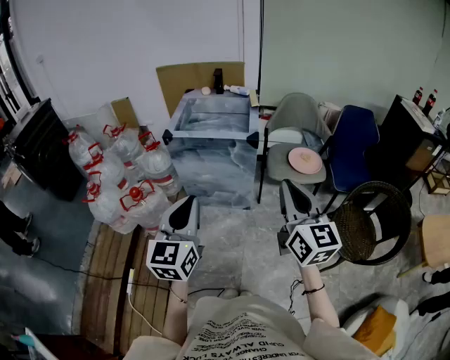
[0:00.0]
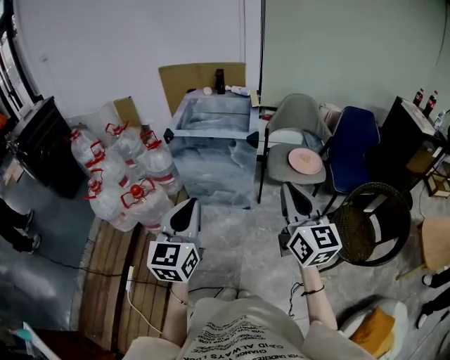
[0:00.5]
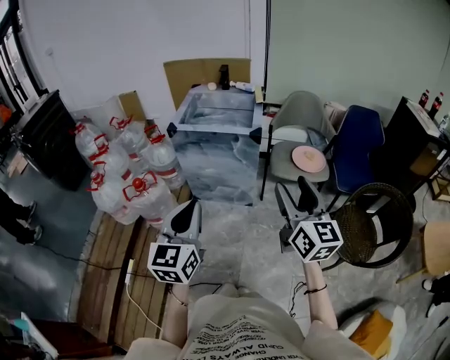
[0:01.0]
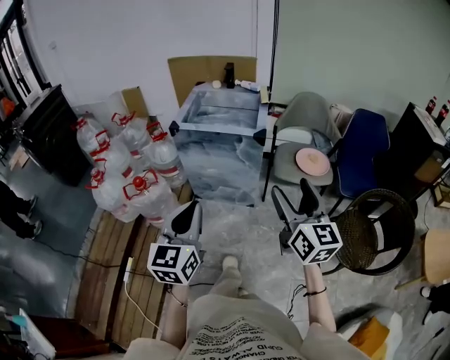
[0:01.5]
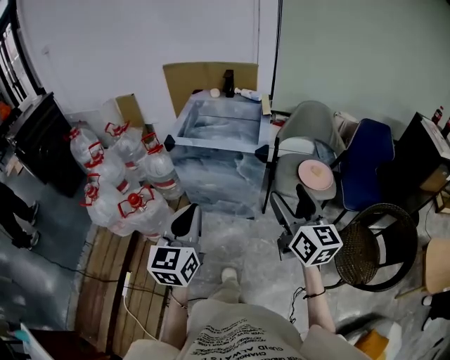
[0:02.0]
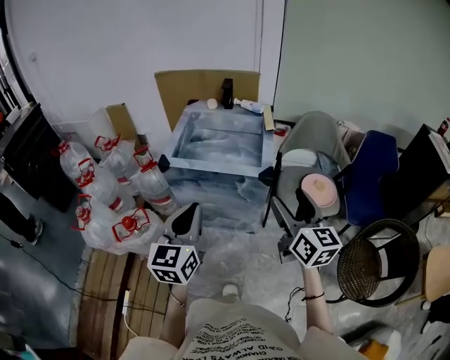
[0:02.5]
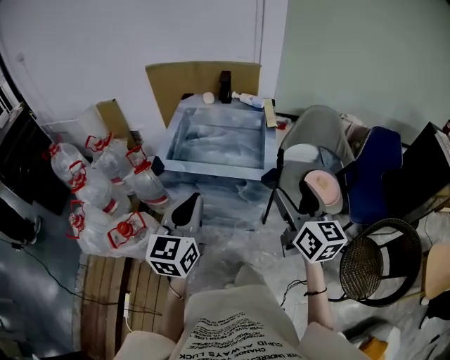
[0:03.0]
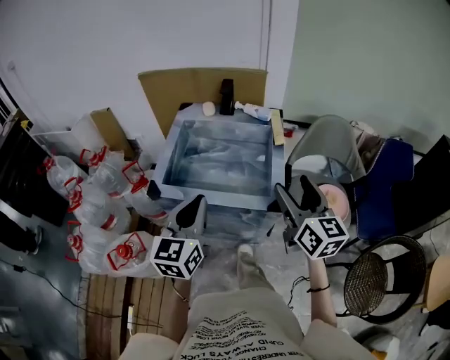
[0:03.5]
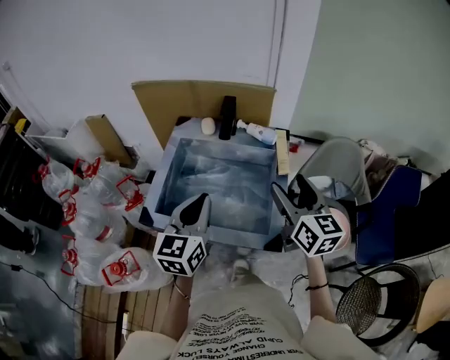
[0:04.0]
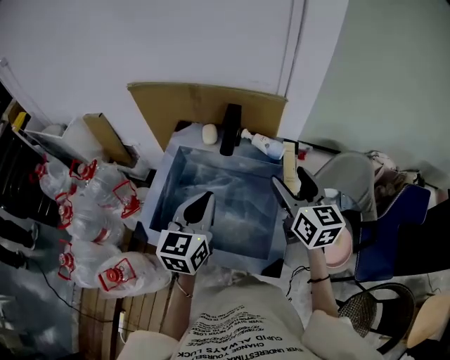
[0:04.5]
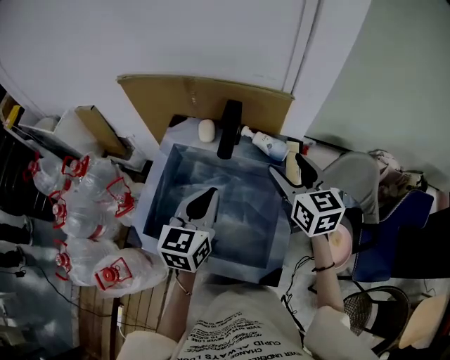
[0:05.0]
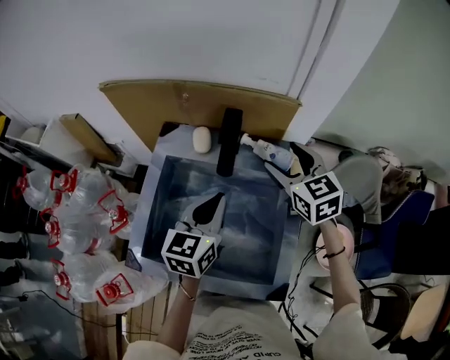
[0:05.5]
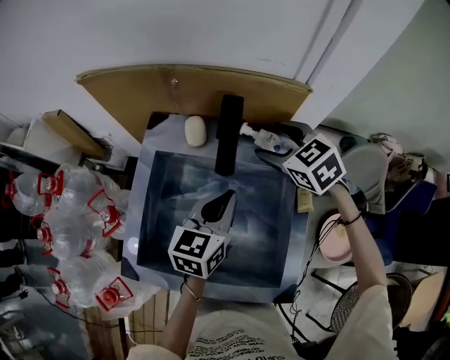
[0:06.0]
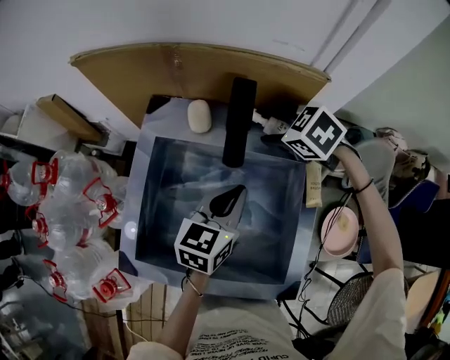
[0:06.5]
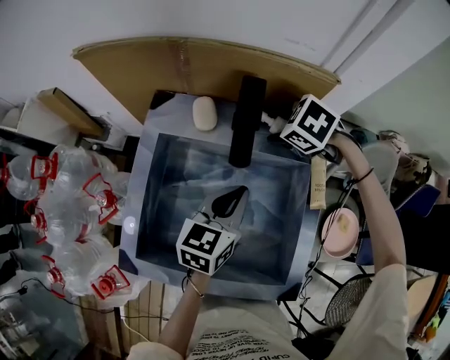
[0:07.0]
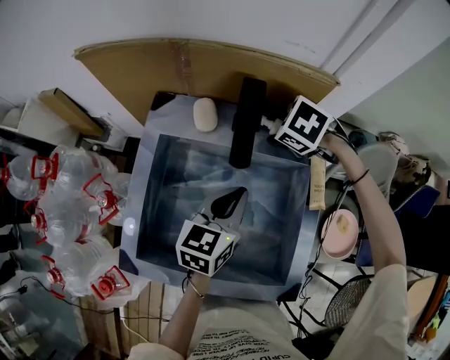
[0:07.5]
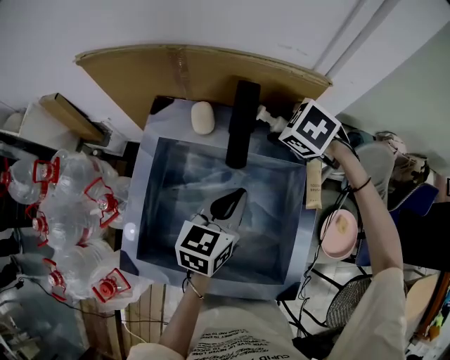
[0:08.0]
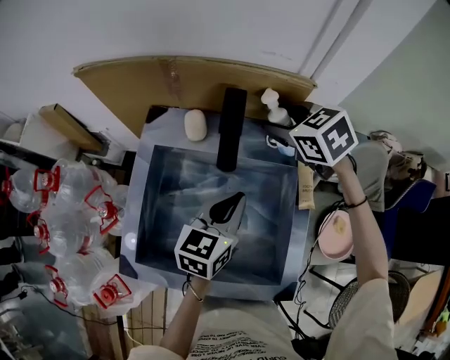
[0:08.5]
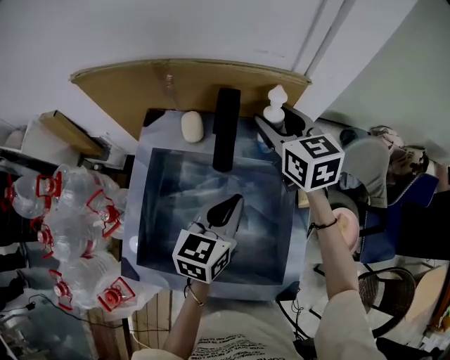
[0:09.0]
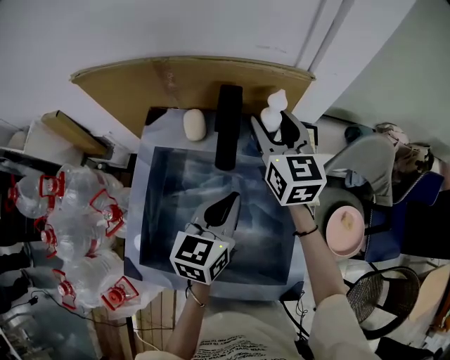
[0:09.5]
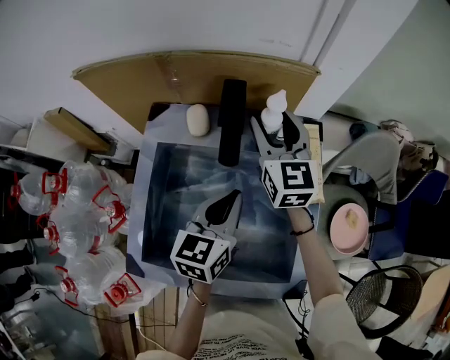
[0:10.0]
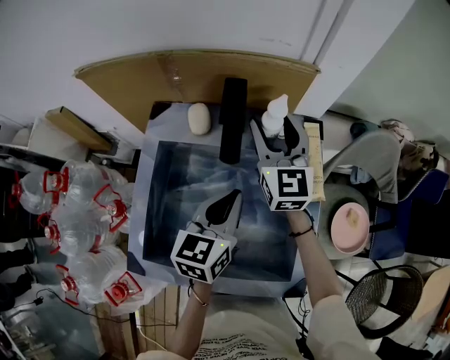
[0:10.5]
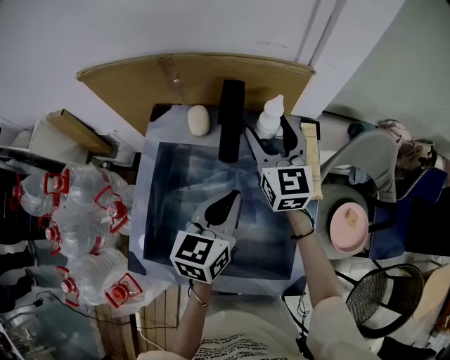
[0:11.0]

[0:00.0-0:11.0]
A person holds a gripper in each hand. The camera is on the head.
0:00.0 to 0:02.0: Both grippers travel together forward, roughly 10 cm. The right gripper opens its fingers.
0:02.0 to 0:03.5: Both grippers travel together forward, about 30 cm.
0:03.5 to 0:05.5: Both grippers travel together forward, about 35 cm. The right gripper turns by approximately 30 degrees.
0:05.5 to 0:07.5: The left gripper heads downward, covering some 5 cm, while the right gripper heads downward, covering some 10 cm, and tilts its fingers approximately 50 degrees downward.
0:07.5 to 0:09.0: The right gripper shifts approximately 10 cm upward, and points its fingers roughly 50 degrees further upward.

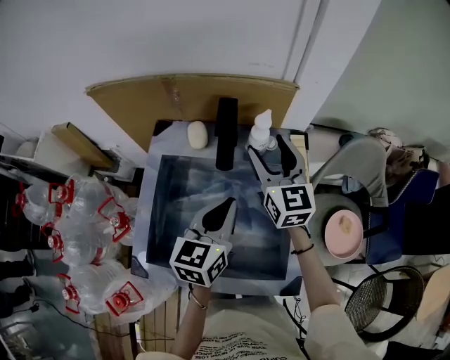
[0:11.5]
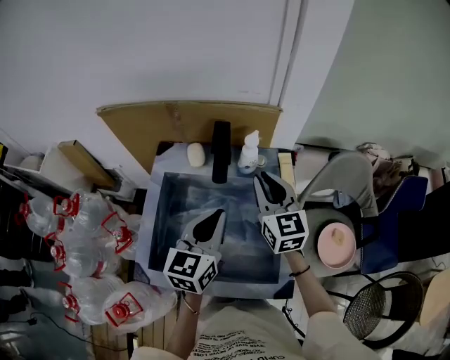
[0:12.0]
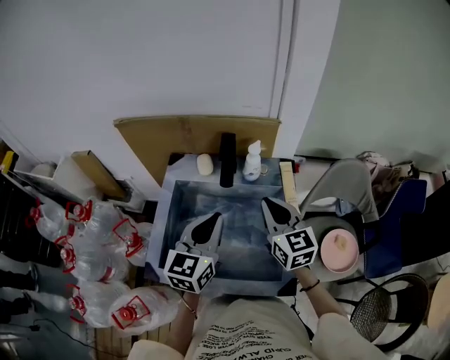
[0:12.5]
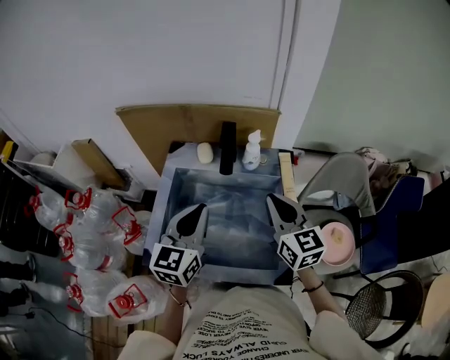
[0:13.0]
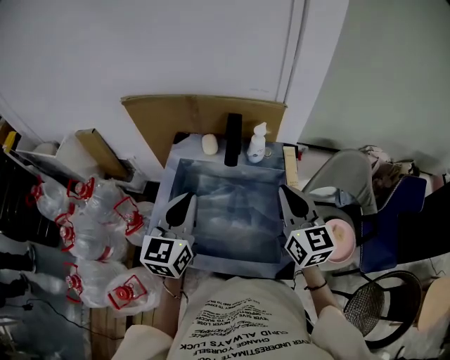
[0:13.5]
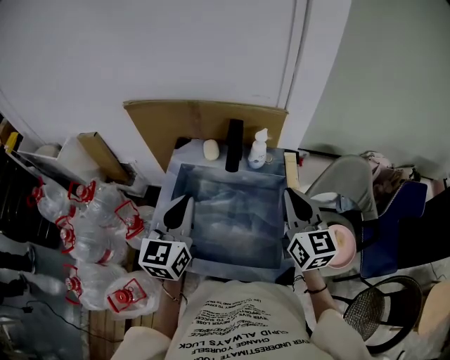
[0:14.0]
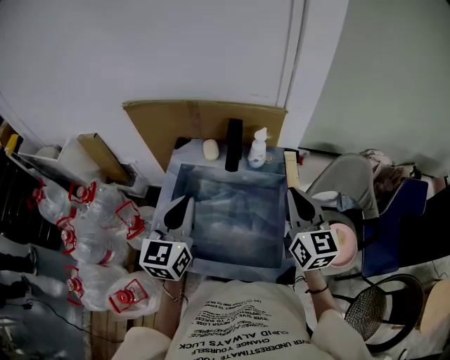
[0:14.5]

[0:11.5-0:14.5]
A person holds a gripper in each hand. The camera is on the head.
0:11.5 to 0:13.0: The right gripper goes approximately 15 cm backward, and closes its fingers. Meanwhile the left gripper shifts roughly 10 cm upward, to the left and backward.
0:13.0 to 0:14.5: The grippers move only a little.

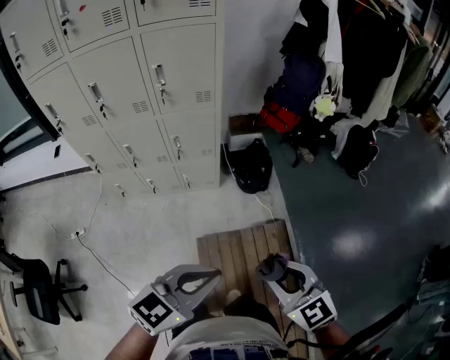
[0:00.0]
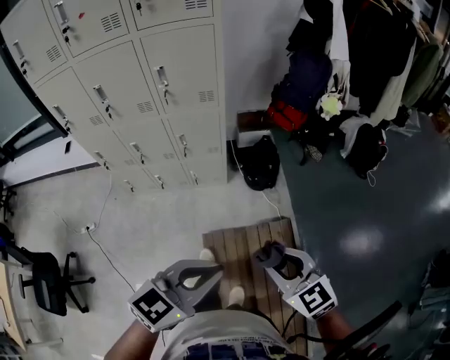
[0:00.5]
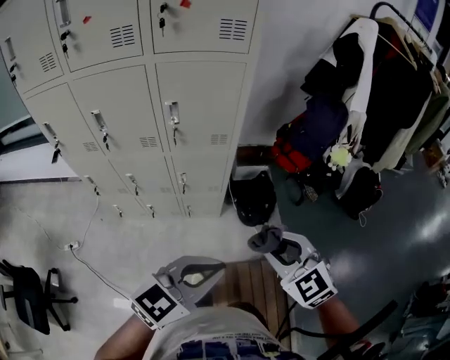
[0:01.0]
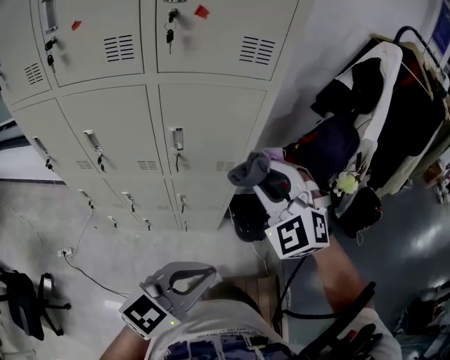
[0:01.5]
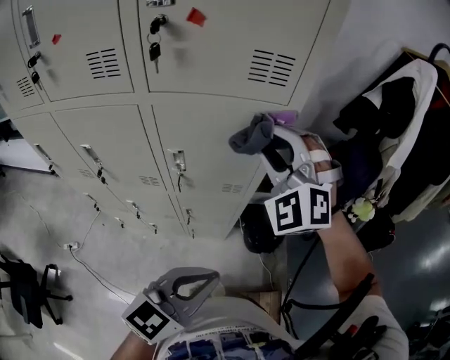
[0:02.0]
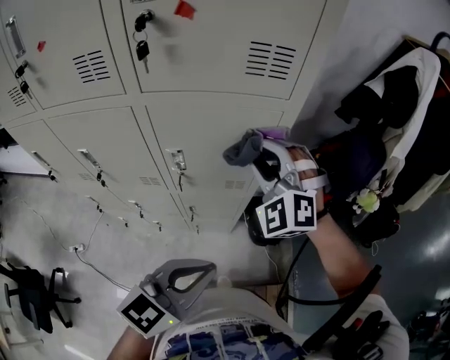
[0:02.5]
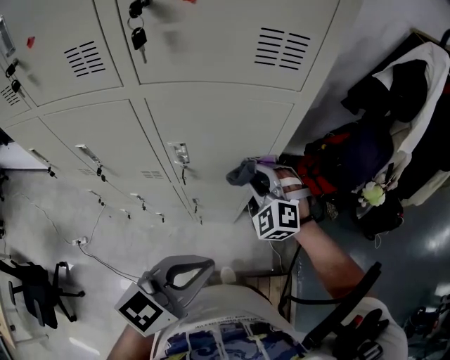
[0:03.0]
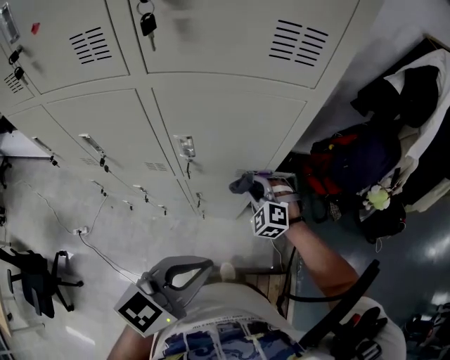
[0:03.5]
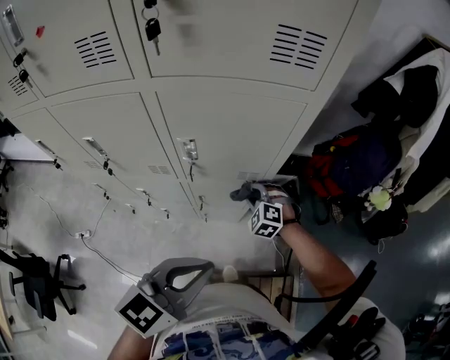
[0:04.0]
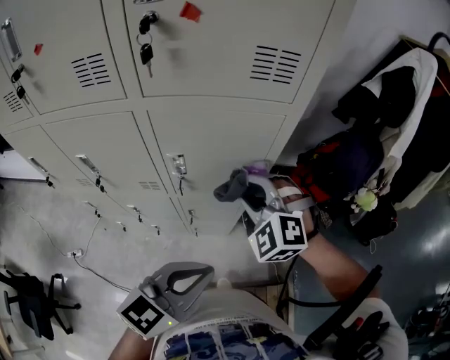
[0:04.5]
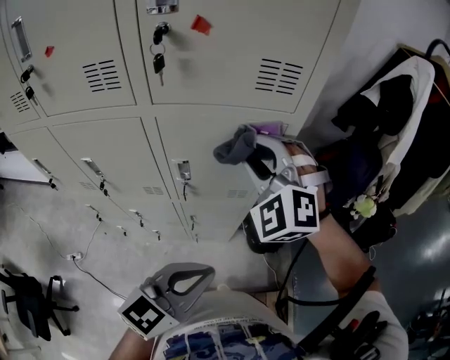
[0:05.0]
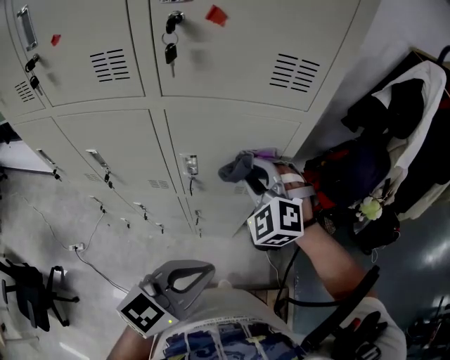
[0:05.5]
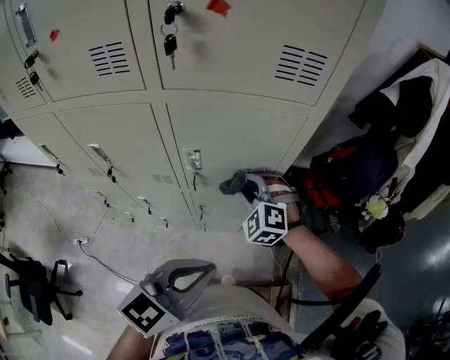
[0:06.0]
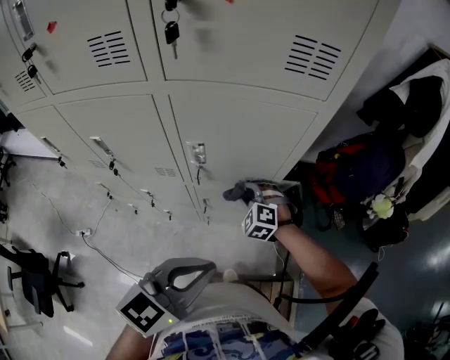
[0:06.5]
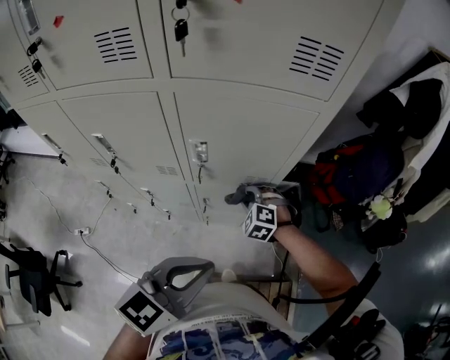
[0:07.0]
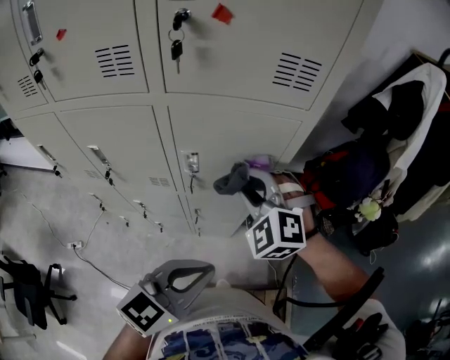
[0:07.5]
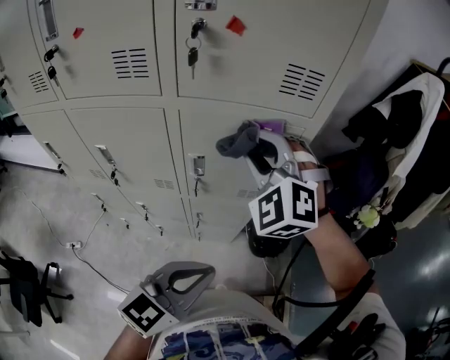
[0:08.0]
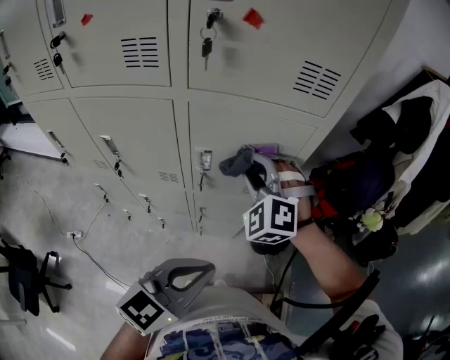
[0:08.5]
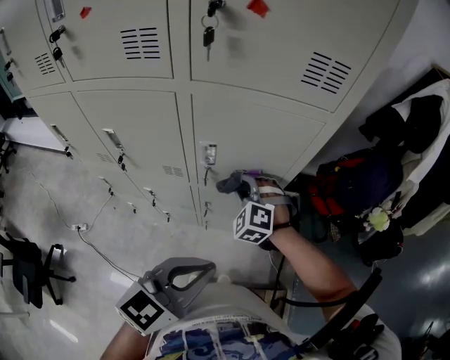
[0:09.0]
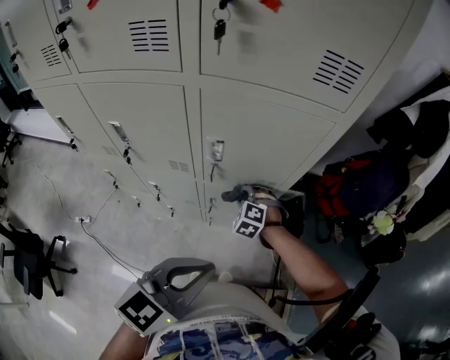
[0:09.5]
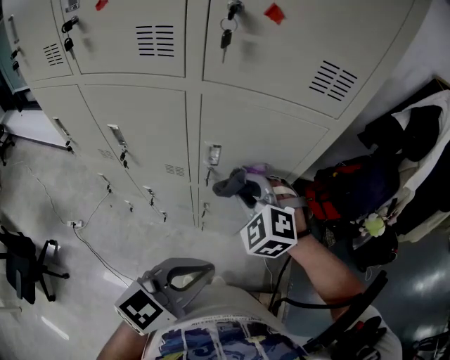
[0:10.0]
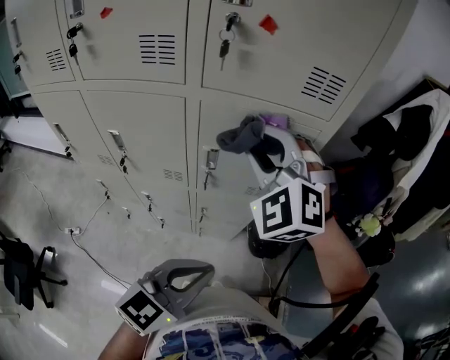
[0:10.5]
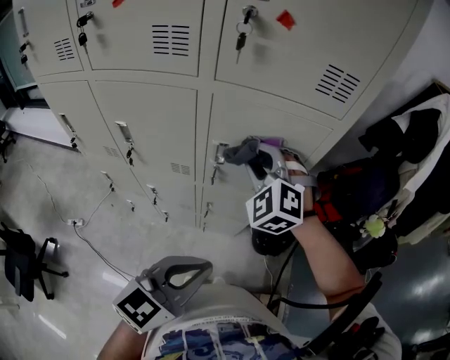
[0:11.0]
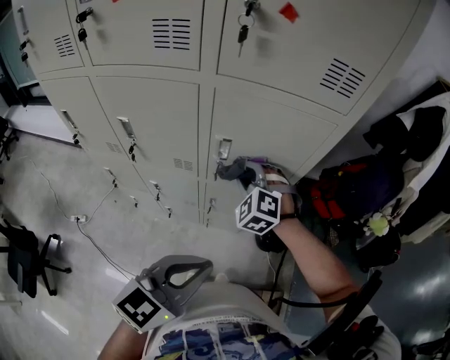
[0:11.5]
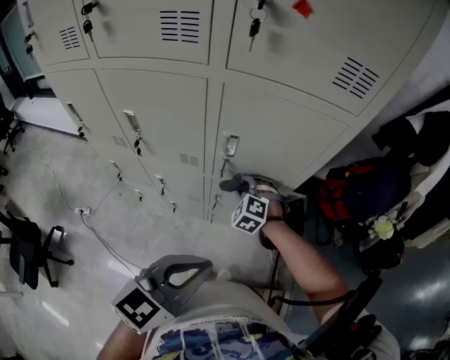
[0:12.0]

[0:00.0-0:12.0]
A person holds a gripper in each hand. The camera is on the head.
0:00.0 to 0:02.0: The pair of grippers is taken forward, about 50 cm. The right gripper twists some 60 degrees counterclockwise, seen from behind.
0:02.0 to 0:04.0: The right gripper shifts approximately 40 cm downward, and tips its fingers downward by roughly 40 degrees.
0:04.0 to 0:06.0: The right gripper is displaced upward by approximately 15 cm.
0:06.0 to 0:08.0: The right gripper travels upward by roughly 25 cm.
0:08.0 to 0:10.0: The right gripper heads downward, covering some 15 cm, and changes its angle by roughly 20 degrees.
0:10.0 to 0:12.0: The right gripper goes approximately 20 cm downward.

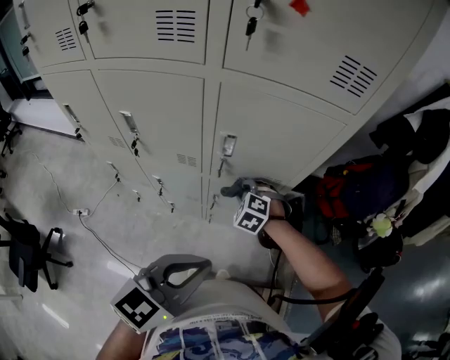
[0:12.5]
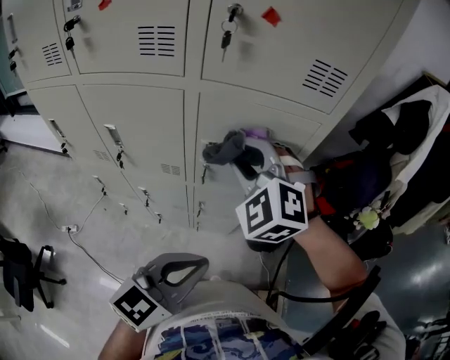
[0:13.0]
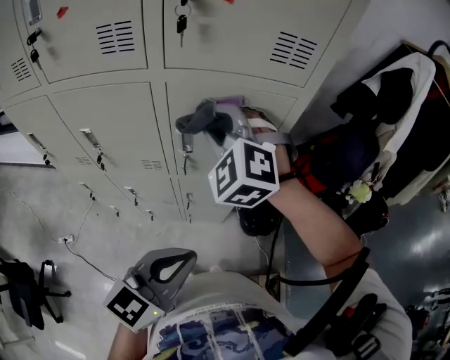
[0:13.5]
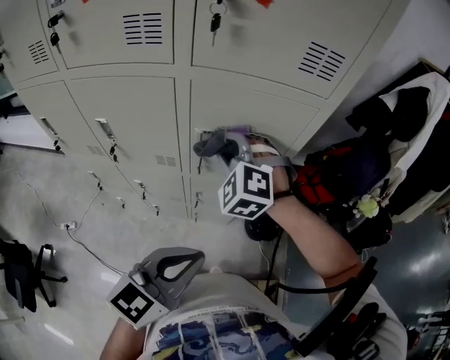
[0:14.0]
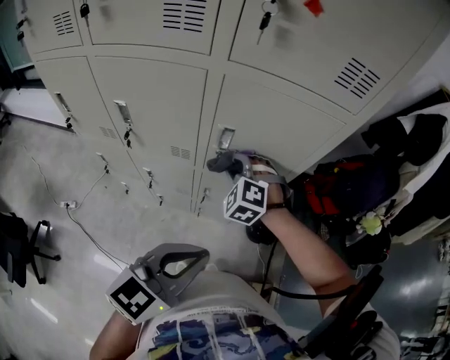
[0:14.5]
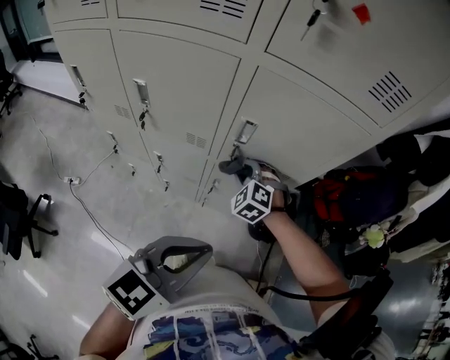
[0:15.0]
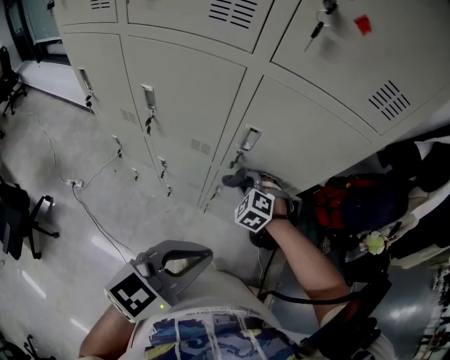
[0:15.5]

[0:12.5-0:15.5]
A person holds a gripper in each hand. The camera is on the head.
0:12.5 to 0:14.0: The right gripper shifts approximately 20 cm upward, and changes its angle by about 20 degrees.
0:14.0 to 0:15.5: The right gripper is displaced downward by approximately 20 cm.
